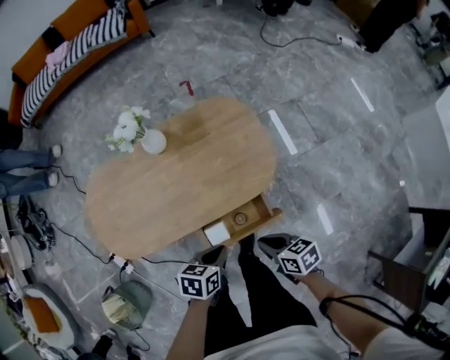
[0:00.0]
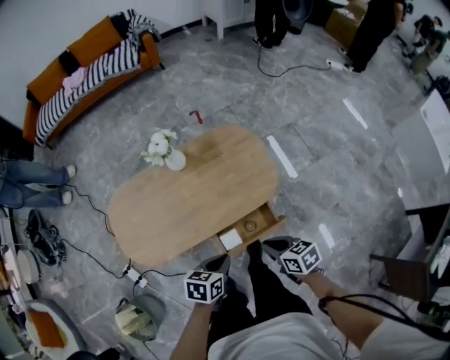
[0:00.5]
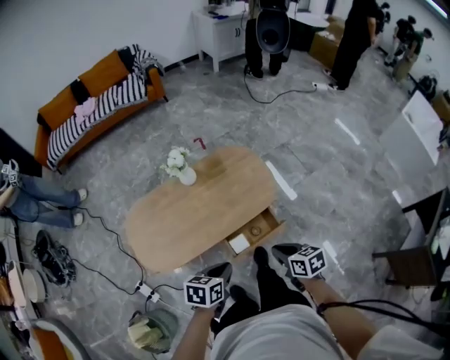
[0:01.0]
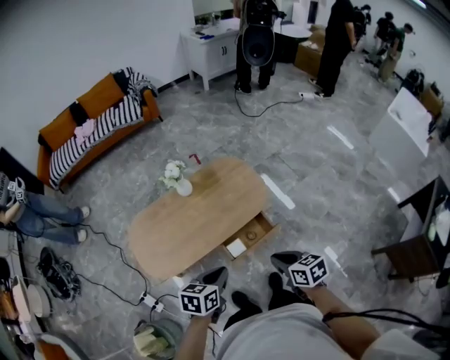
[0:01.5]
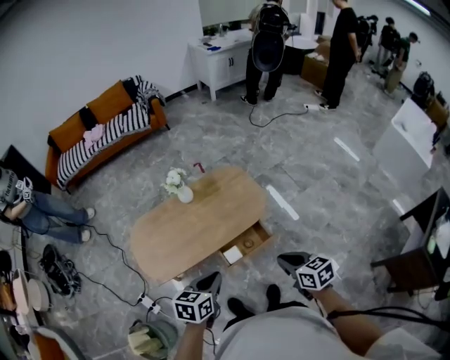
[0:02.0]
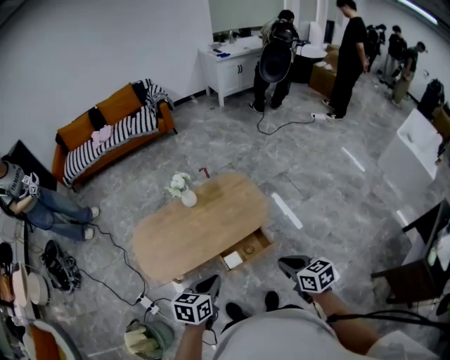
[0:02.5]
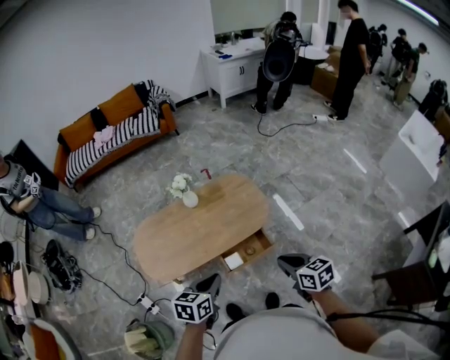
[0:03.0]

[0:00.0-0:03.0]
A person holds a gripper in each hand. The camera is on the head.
0:00.0 to 0:01.5: The left gripper is displaced upward, backward and to the left by roughly 30 cm. The right gripper heads upward and backward, covering roughly 30 cm, and rotates approximately 20 degrees.
0:01.5 to 0:03.0: The right gripper is displaced to the right and upward by some 10 cm.

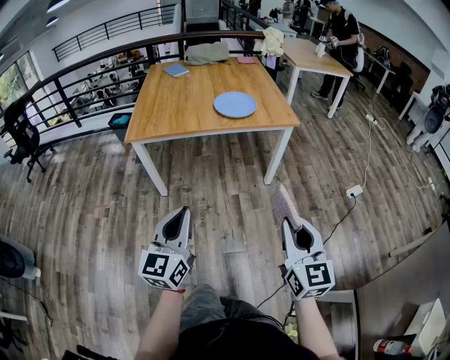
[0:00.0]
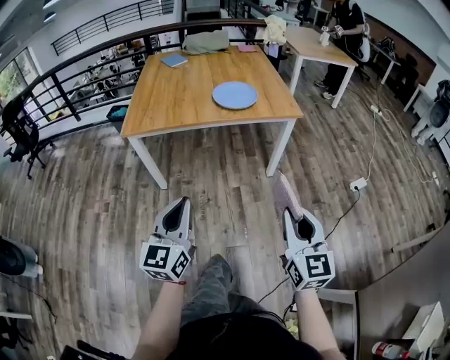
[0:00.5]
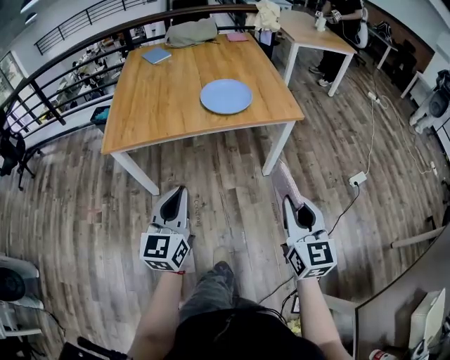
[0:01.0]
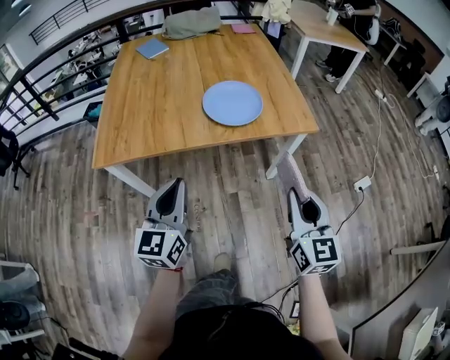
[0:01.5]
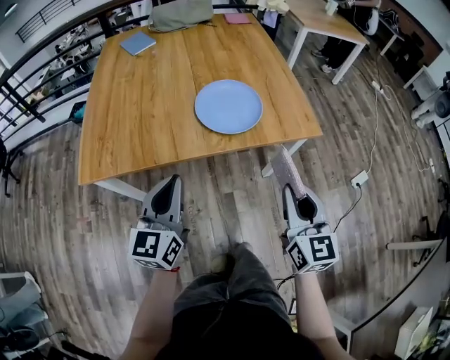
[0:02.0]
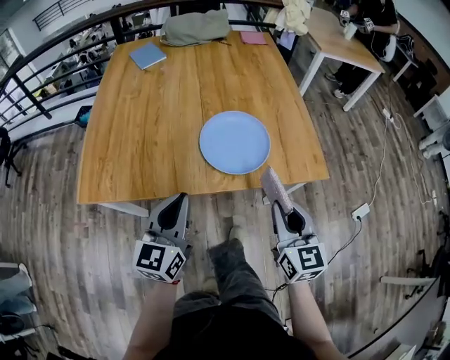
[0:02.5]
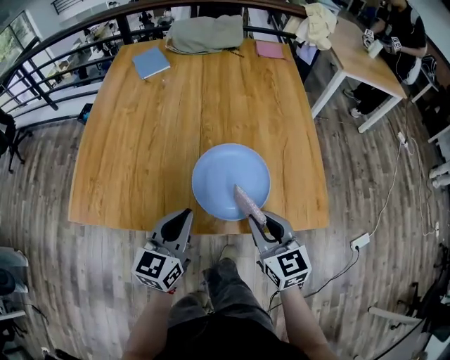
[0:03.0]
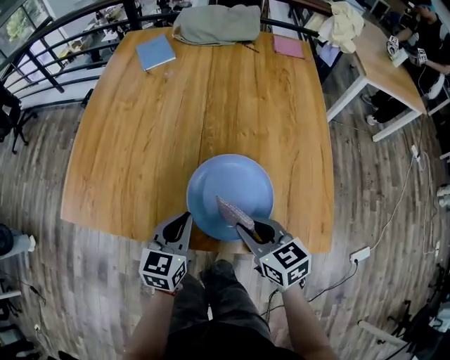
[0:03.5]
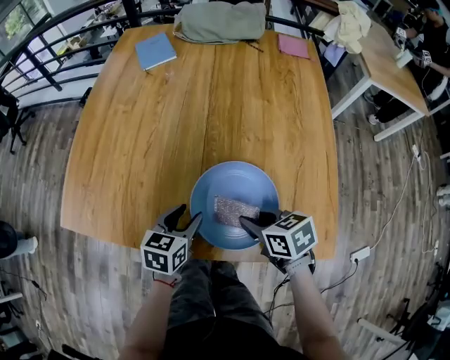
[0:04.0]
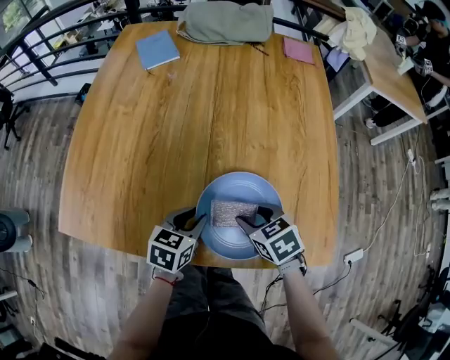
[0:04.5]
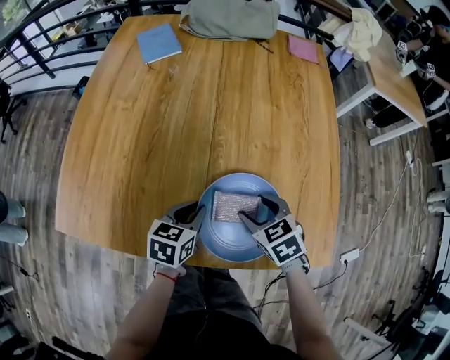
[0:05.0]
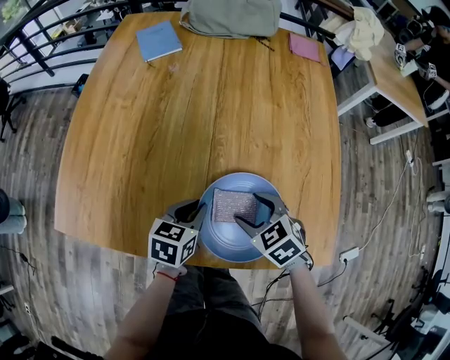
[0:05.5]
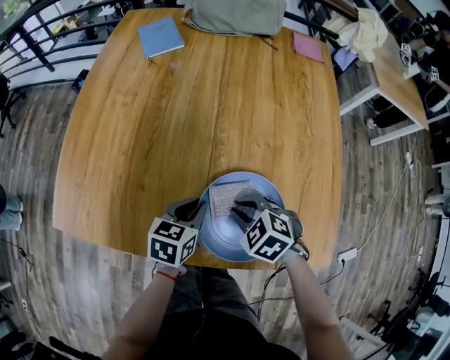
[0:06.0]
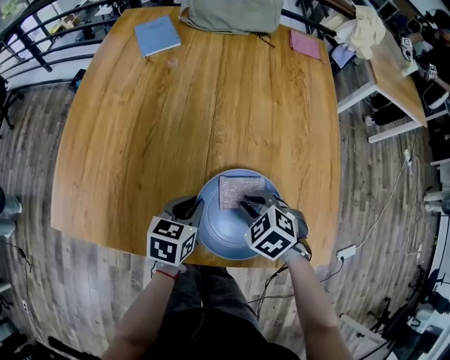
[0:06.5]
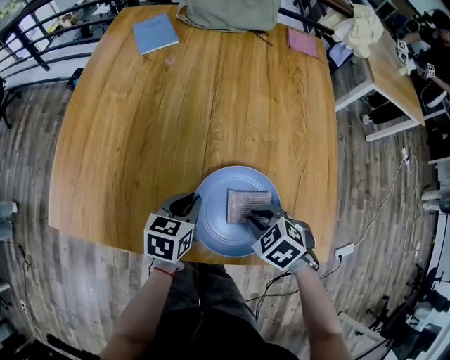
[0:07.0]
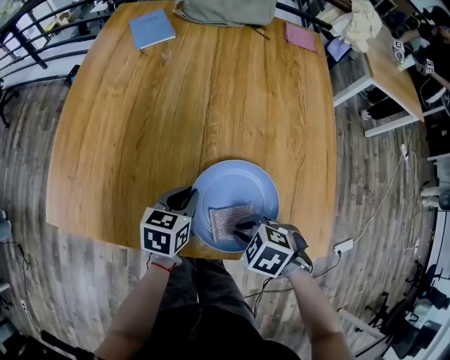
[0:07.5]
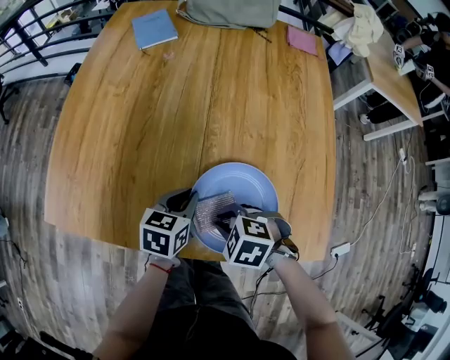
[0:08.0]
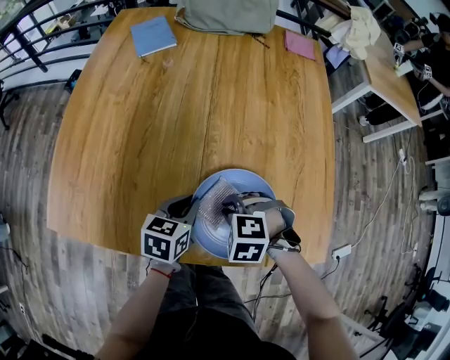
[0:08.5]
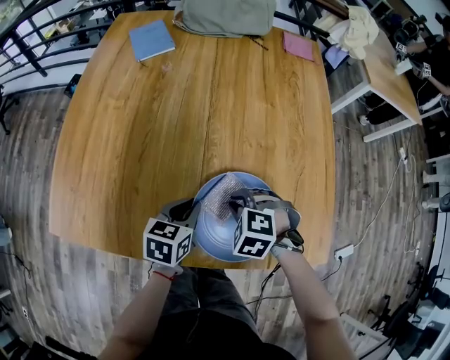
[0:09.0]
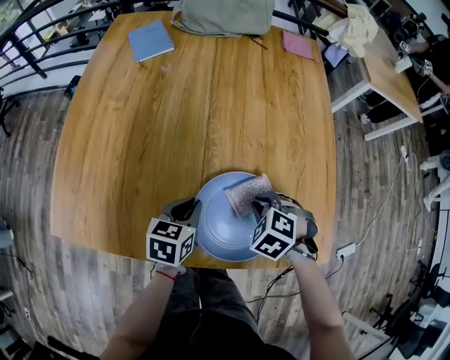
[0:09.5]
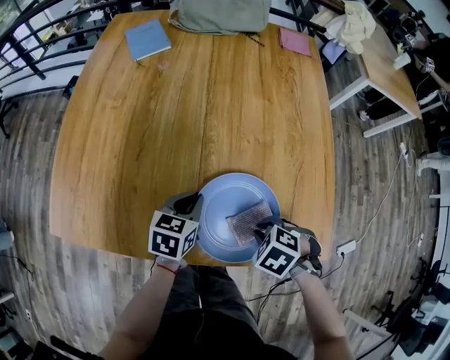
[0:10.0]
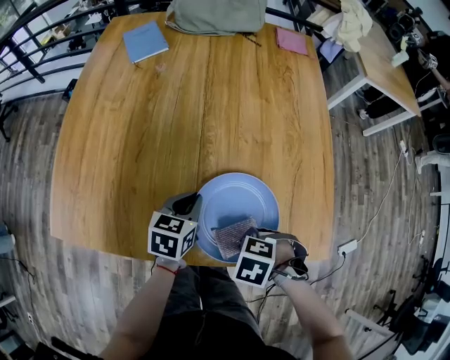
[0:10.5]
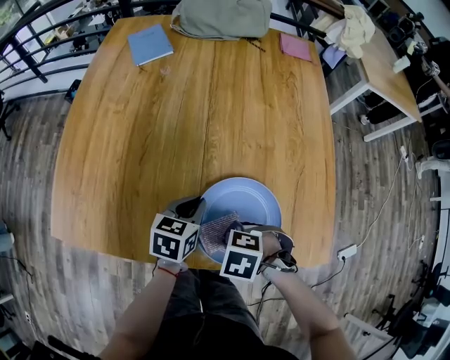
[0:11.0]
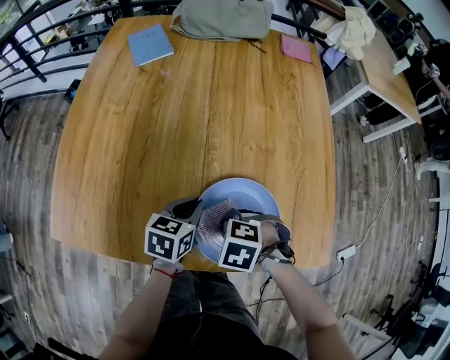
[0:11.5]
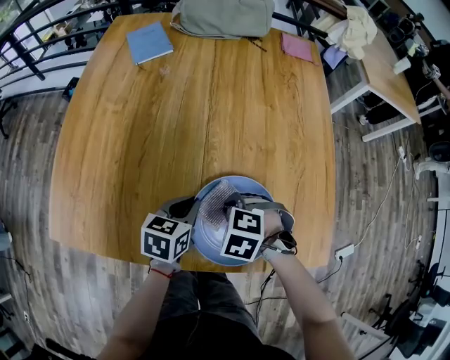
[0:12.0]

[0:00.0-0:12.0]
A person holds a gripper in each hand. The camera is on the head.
0:00.0 to 0:02.0: Both grippers travel together forward, roughly 40 cm.
0:02.0 to 0:04.0: The left gripper shifts by about 30 cm, angles its fingers downward, by approximately 40 degrees, and opens. The right gripper changes place by approximately 35 cm, and angles its fingers downward, by roughly 40 degrees.
0:04.0 to 0:06.0: The left gripper closes up, while the right gripper changes place by about 5 cm, twists roughly 40 degrees counterclockwise, seen from behind, and opens, then closes once more.
0:06.0 to 0:08.0: The right gripper travels backward by some 5 cm.
0:08.0 to 0:10.0: The right gripper shifts by approximately 10 cm, and rotates about 20 degrees.
0:10.0 to 0:12.0: The right gripper changes place by some 15 cm.

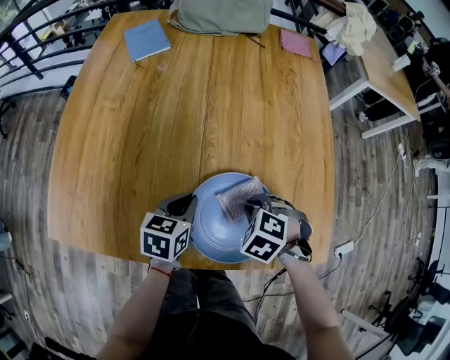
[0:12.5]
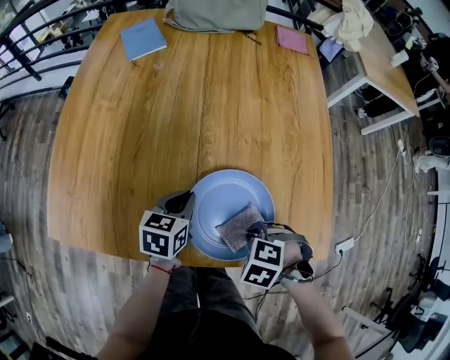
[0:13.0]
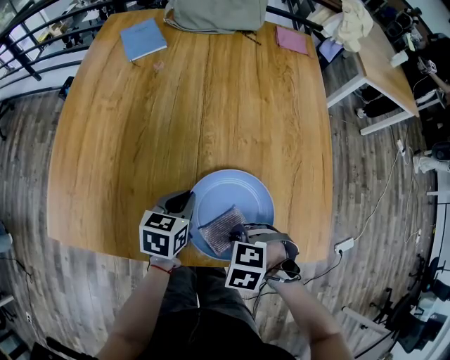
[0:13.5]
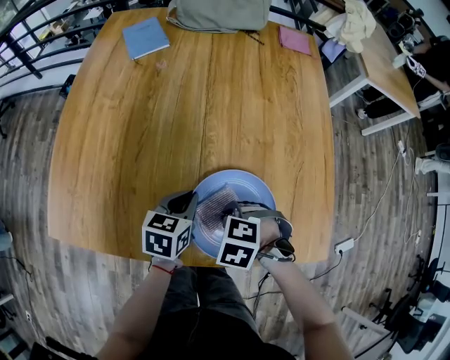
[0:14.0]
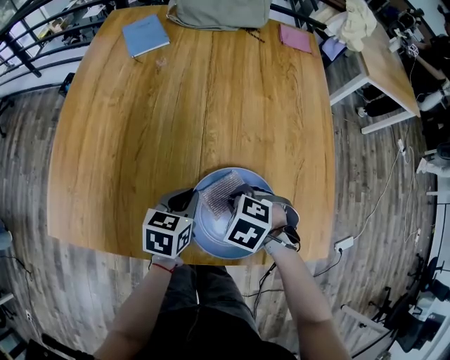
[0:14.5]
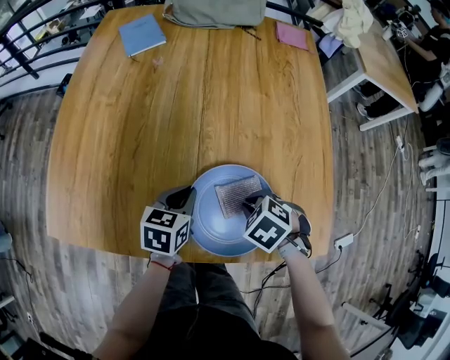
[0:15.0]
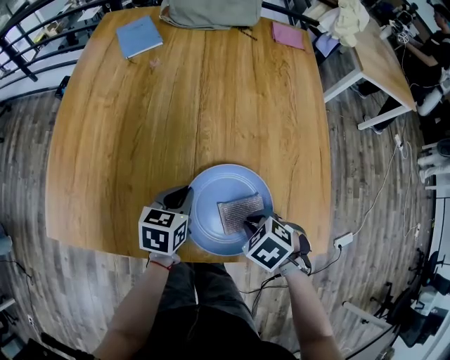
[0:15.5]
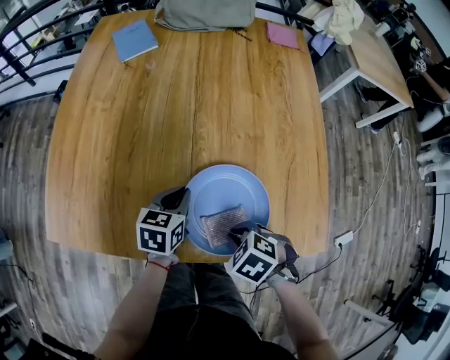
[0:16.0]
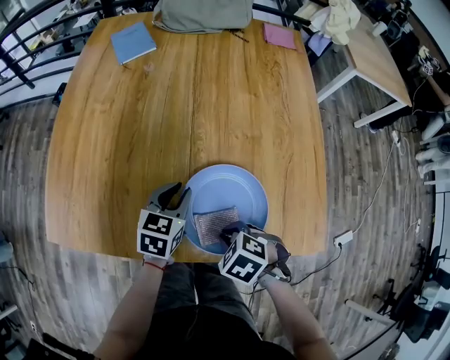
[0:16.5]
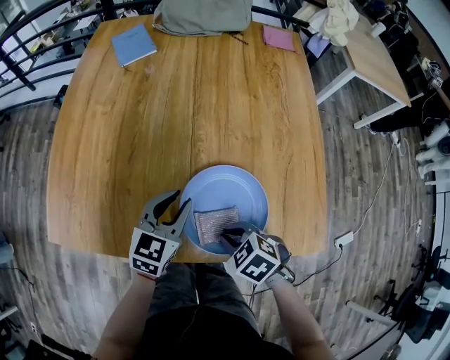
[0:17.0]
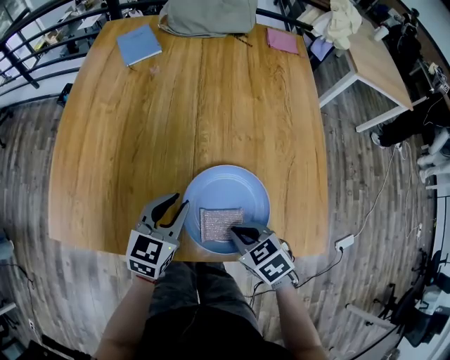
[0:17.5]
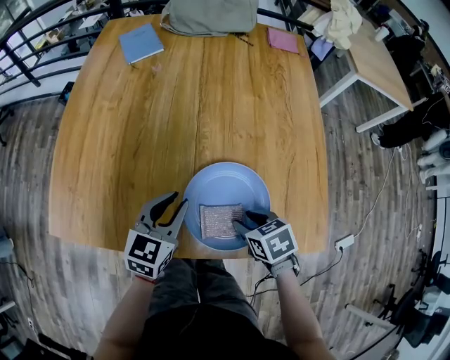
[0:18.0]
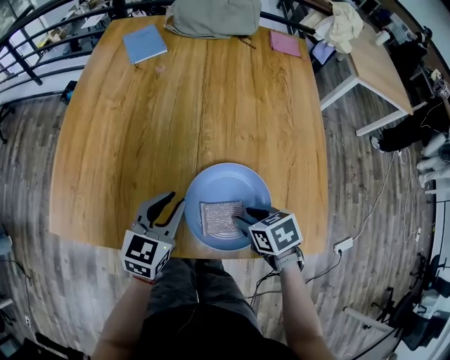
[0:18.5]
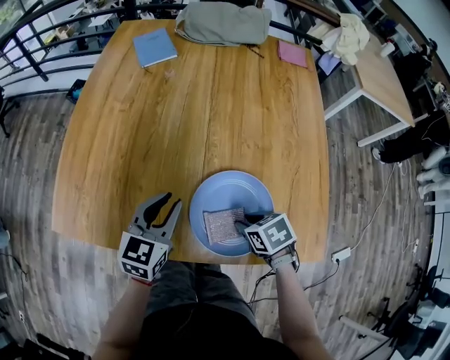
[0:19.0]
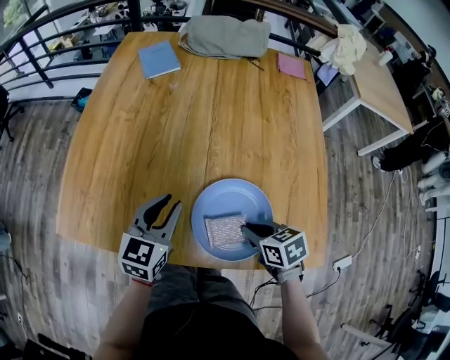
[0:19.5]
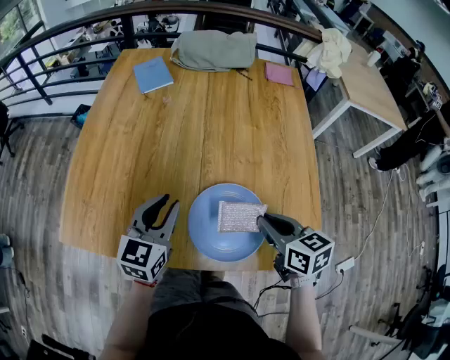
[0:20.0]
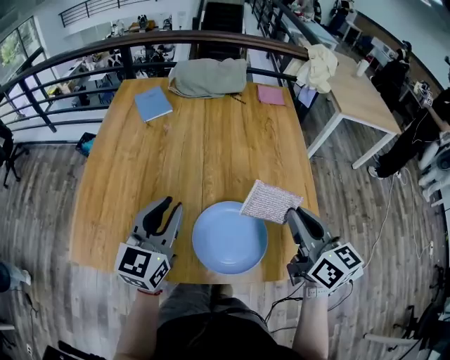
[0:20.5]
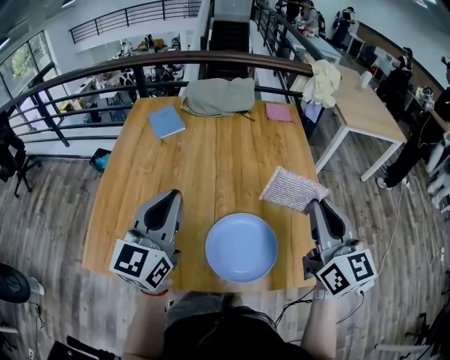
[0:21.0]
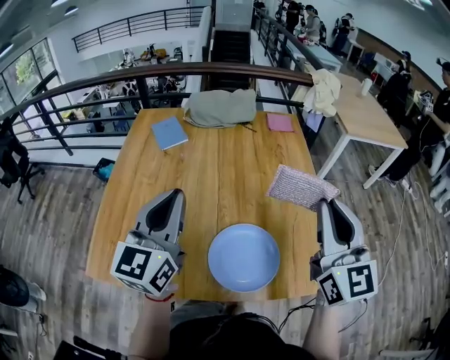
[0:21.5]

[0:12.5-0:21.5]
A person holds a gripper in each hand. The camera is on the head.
0:14.5 to 0:17.0: The right gripper changes place by about 10 cm, and rotates roughly 20 degrees, while the left gripper goes some 5 cm upward, and rotates about 20 degrees.
0:17.0 to 0:19.5: The left gripper moves to the left and upward, about 10 cm, while the right gripper heads to the right, covering about 5 cm, turns by approximately 30 degrees, and opens and closes again.
0:19.5 to 0:21.5: The right gripper is displaced upward by approximately 35 cm, and angles its fingers upward, by roughly 60 degrees; the left gripper moves upward, approximately 25 cm, swivels some 30 degrees, and closes.

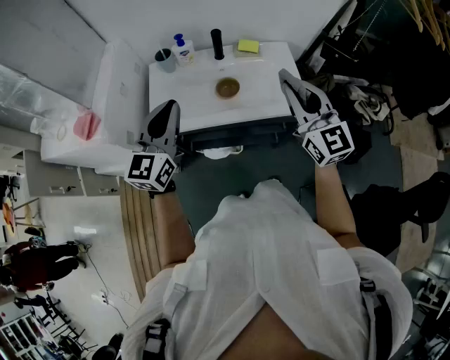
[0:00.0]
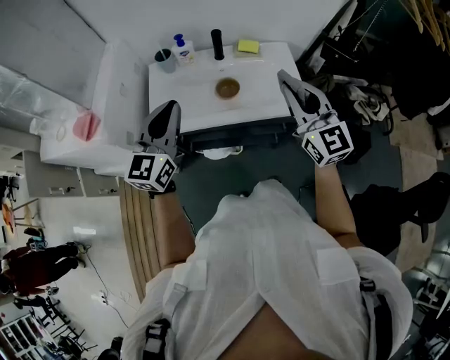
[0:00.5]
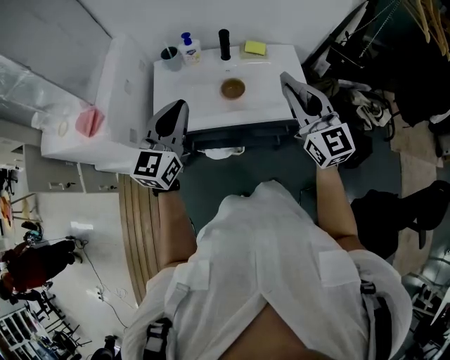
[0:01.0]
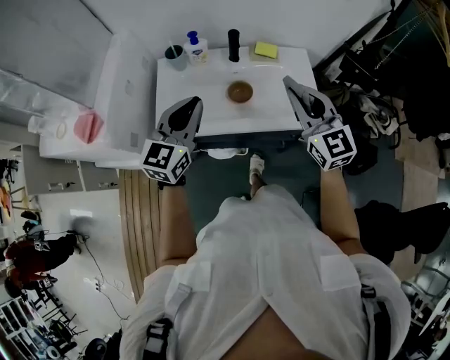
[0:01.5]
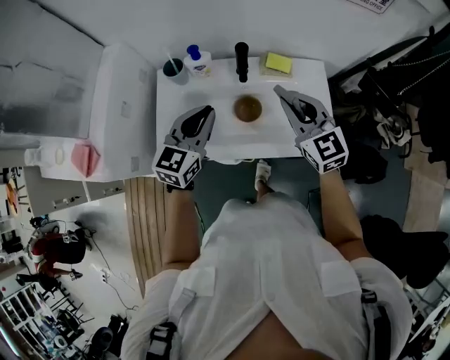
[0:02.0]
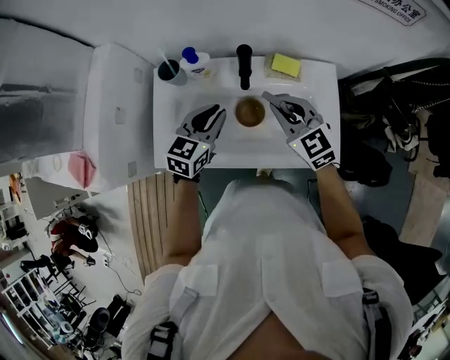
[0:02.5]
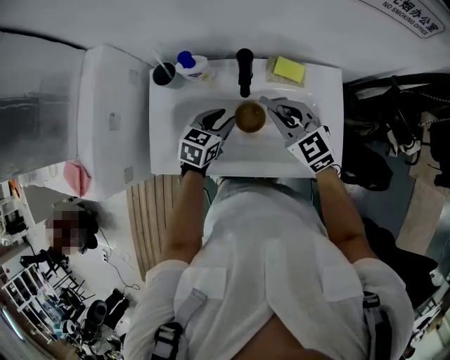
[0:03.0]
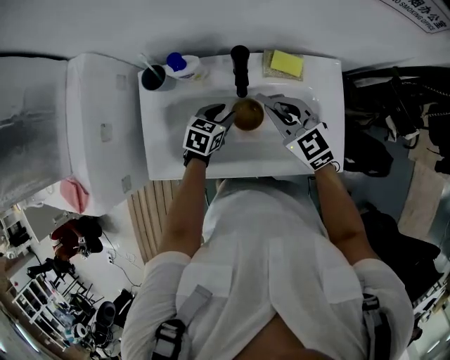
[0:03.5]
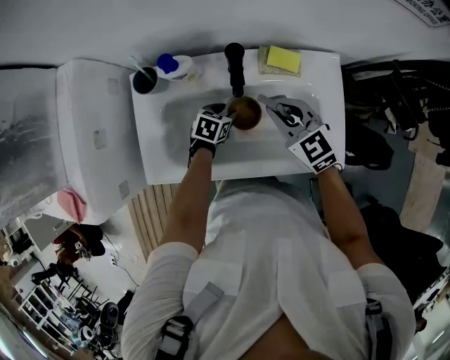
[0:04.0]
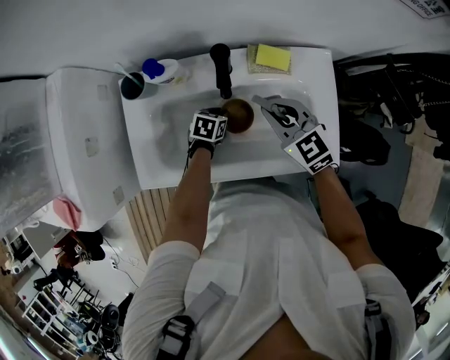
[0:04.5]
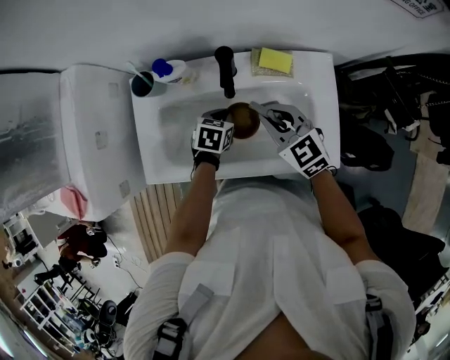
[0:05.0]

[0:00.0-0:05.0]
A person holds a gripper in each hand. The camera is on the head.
0:00.0 to 0:02.5: The two grippers go roughly 30 cm forward and downward. The left gripper rotates some 30 degrees. Meanwhile the right gripper rotates some 30 degrees.
0:02.5 to 0:05.0: The left gripper heads downward, covering some 20 cm, points its fingers roughly 30 degrees further downward, and opens and closes again; the right gripper goes approximately 5 cm downward.
